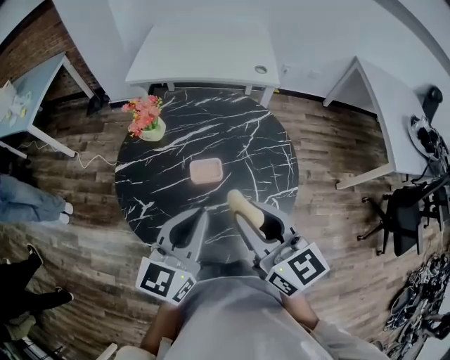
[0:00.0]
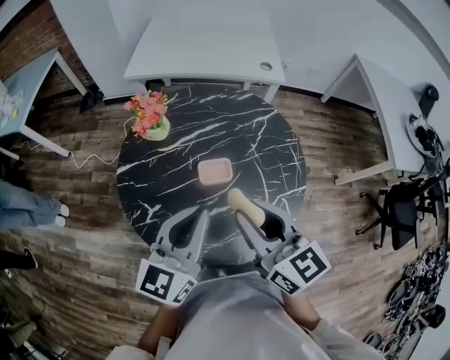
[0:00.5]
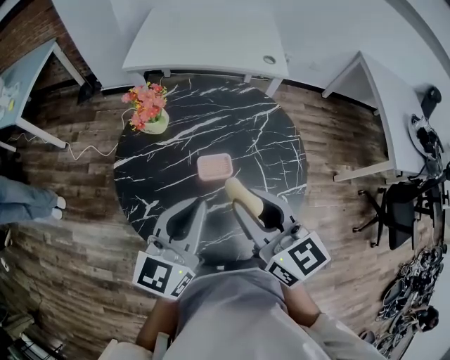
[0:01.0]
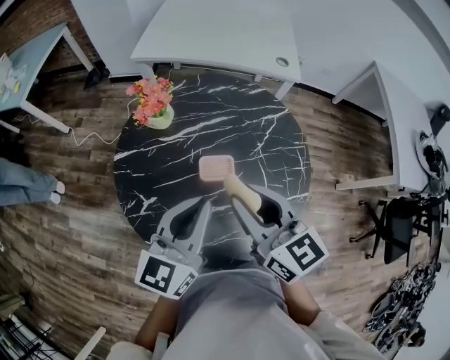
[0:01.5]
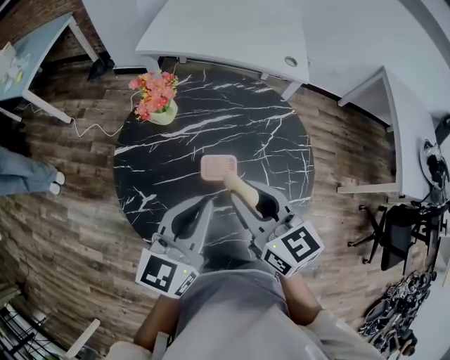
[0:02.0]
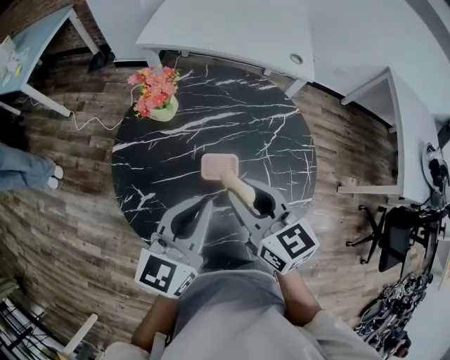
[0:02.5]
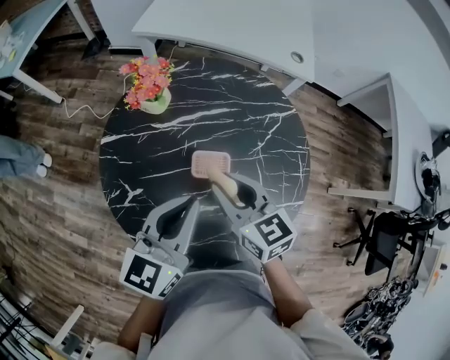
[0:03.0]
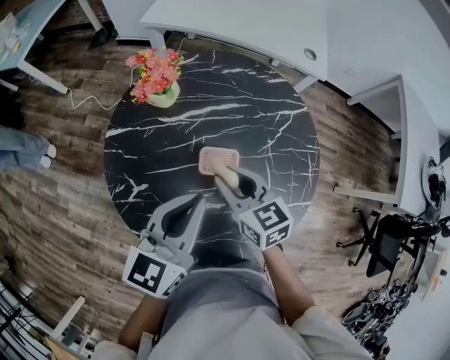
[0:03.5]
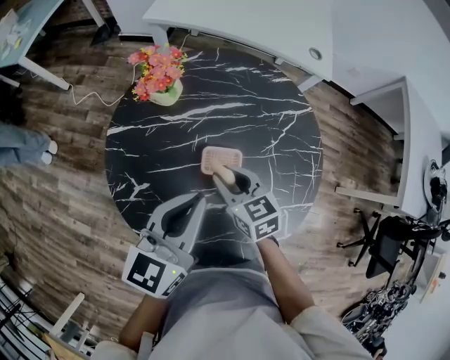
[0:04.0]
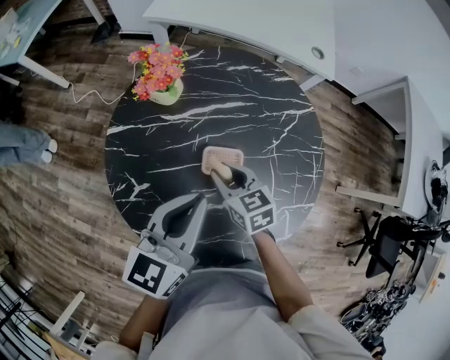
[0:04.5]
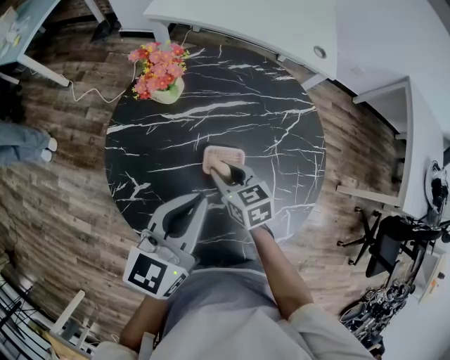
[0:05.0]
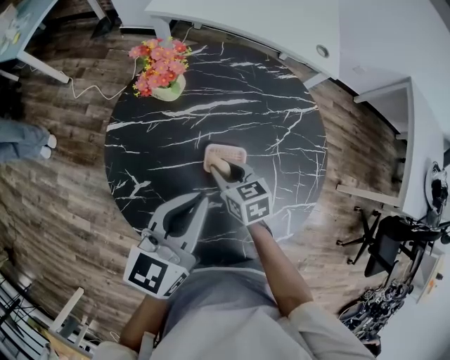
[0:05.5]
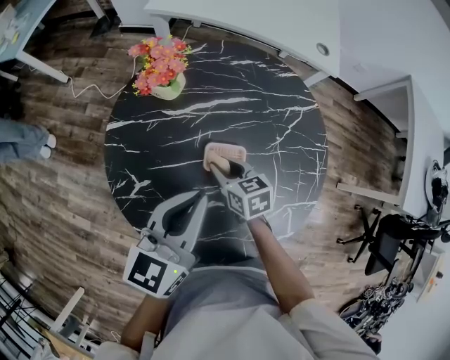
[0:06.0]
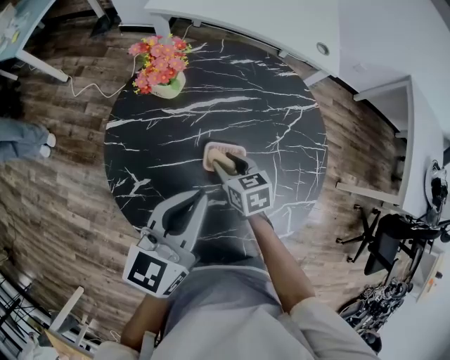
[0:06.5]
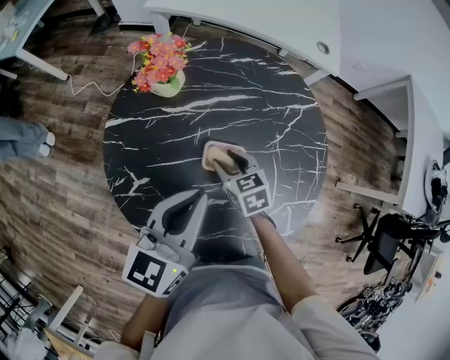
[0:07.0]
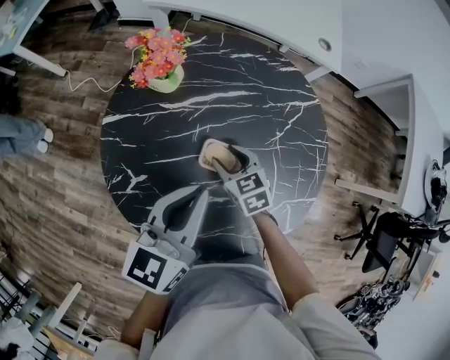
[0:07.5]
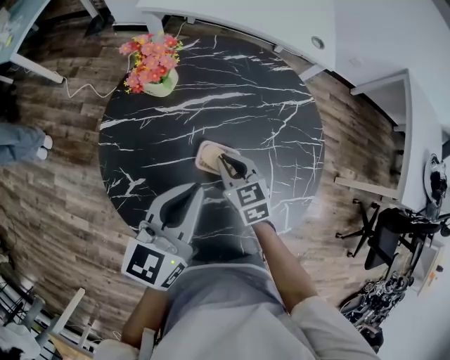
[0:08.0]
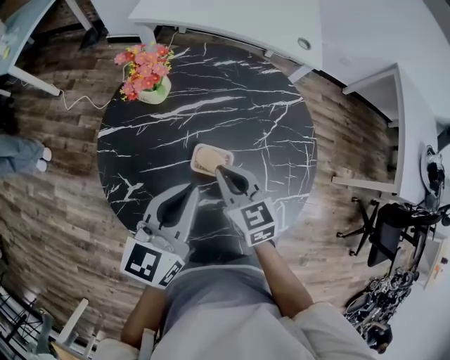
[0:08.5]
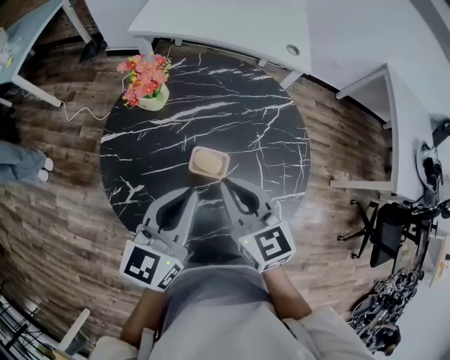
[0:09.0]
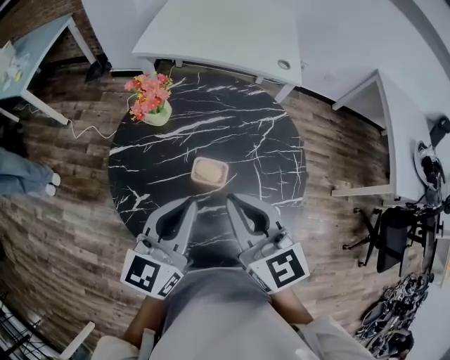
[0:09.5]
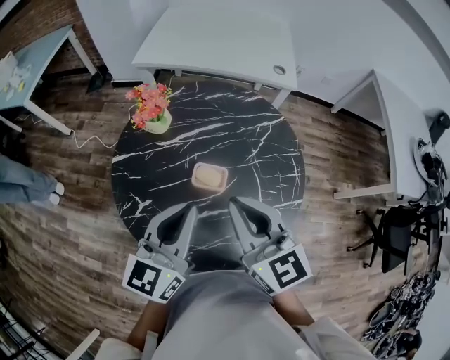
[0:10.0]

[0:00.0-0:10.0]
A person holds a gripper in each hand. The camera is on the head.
0:00.0 to 0:02.0: The left gripper shifts some 5 cm forward, while the right gripper travels forward, downward and to the left by approximately 15 cm.
0:02.0 to 0:04.0: The left gripper shifts by about 5 cm, while the right gripper moves downward, approximately 15 cm.
0:04.0 to 0:06.0: The right gripper moves downward, about 5 cm.
0:06.0 to 0:08.0: The right gripper opens, then closes again.
0:08.0 to 0:10.0: The left gripper shifts some 10 cm upward and backward. The right gripper moves upward and backward, approximately 30 cm, and swivels approximately 30 degrees.

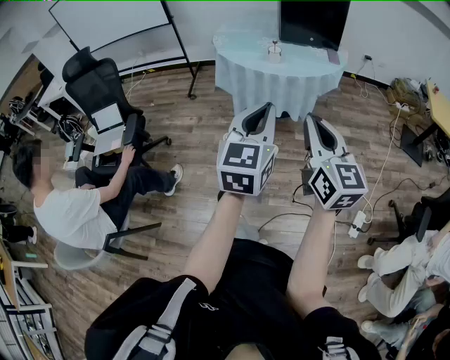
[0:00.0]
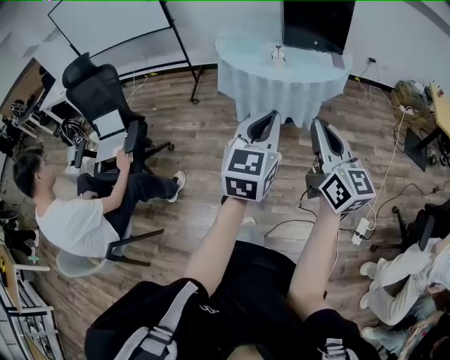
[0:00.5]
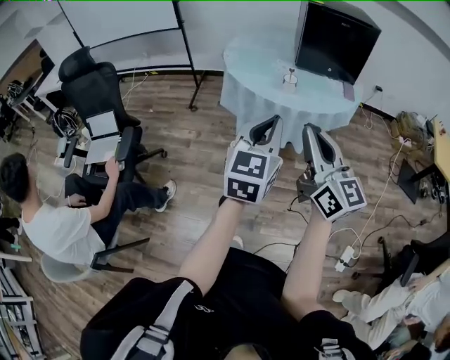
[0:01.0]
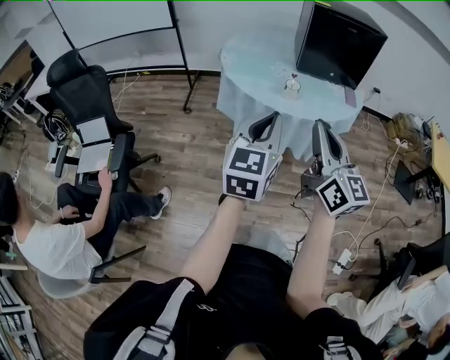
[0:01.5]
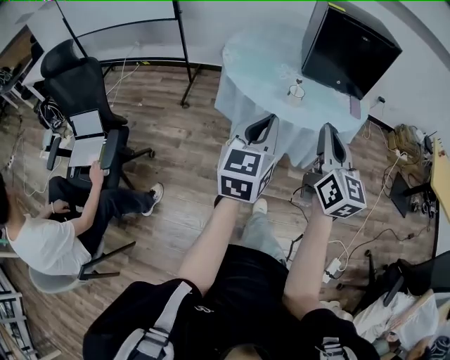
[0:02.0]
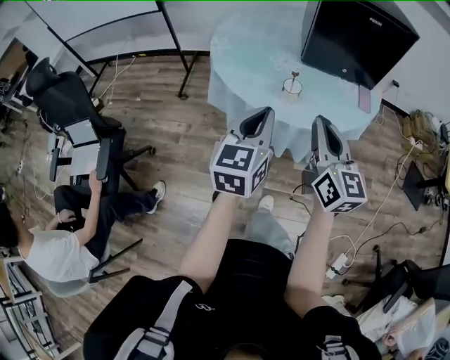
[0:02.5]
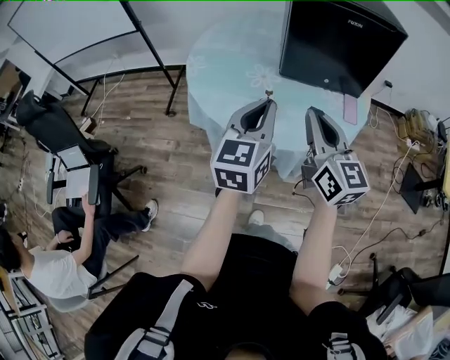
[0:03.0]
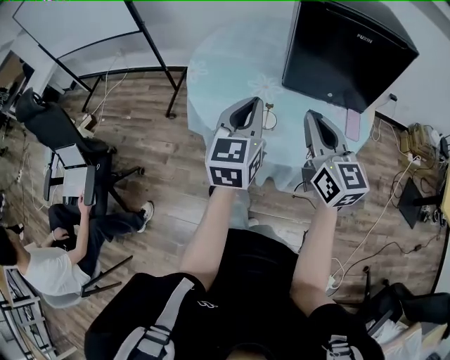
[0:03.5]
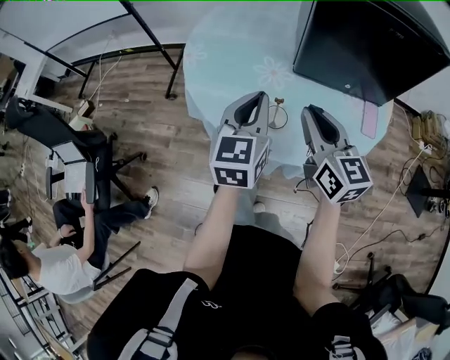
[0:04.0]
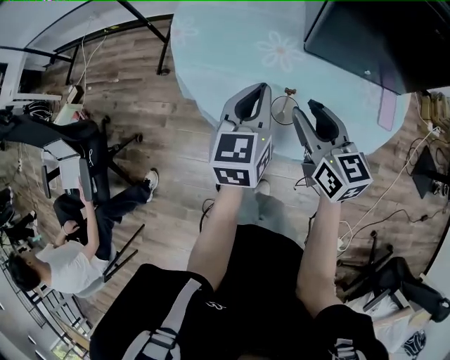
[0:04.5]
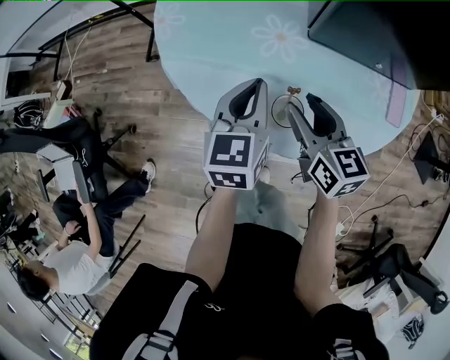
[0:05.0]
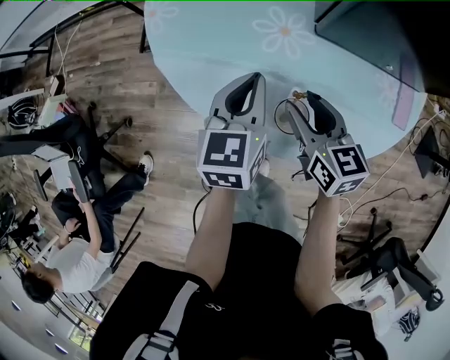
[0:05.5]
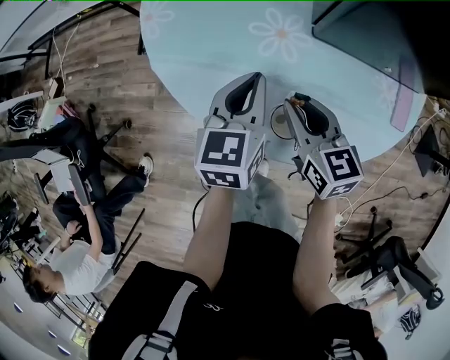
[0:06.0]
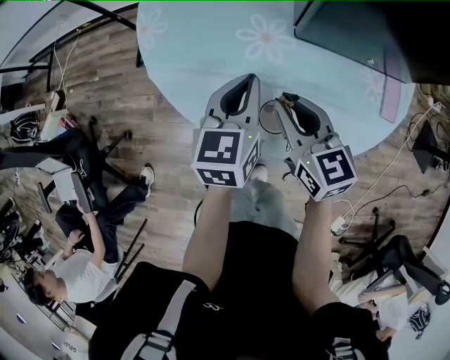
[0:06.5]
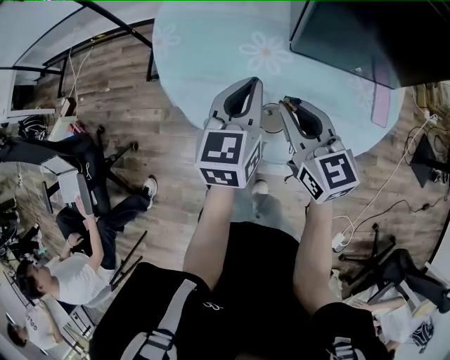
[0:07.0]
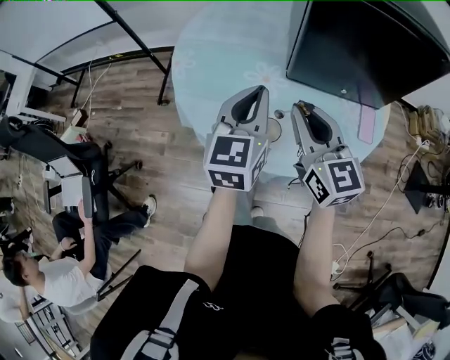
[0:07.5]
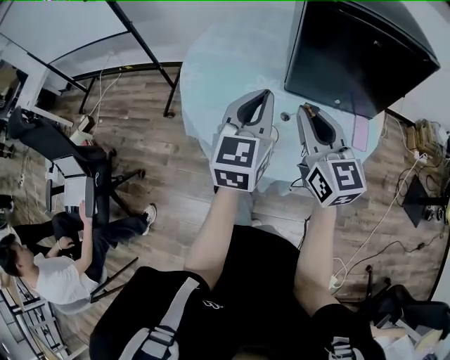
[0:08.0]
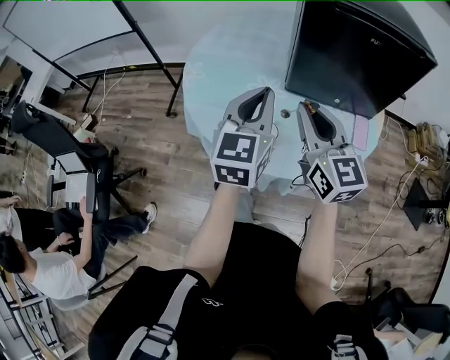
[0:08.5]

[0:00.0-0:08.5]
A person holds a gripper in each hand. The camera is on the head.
0:00.0 to 0:02.0: Both grippers travel together forward, some 30 cm.
0:02.0 to 0:04.0: The grippers both shift forward by about 35 cm. The right gripper changes its angle by approximately 20 degrees.
0:04.0 to 0:06.5: Both grippers travel together downward and forward, roughly 15 cm. The right gripper opens and closes again.
0:06.5 to 0:08.5: The right gripper shifts some 20 cm upward, and rotates some 20 degrees; the left gripper shifts about 20 cm upward and backward, and swivels roughly 20 degrees.

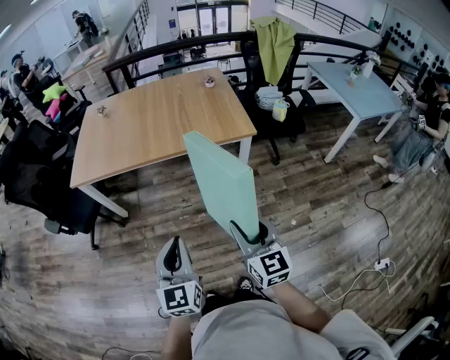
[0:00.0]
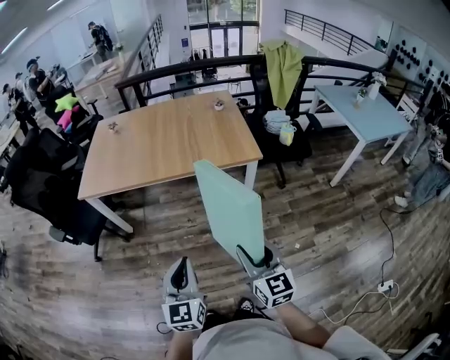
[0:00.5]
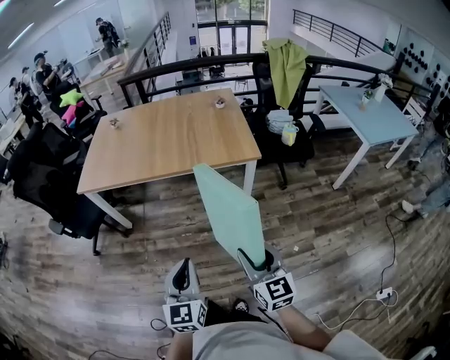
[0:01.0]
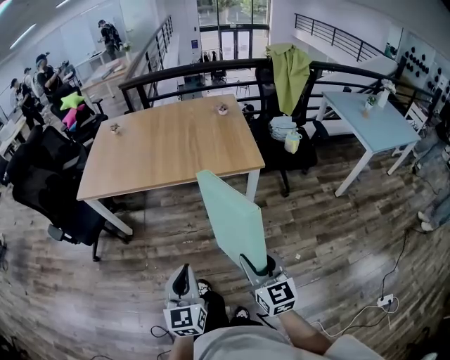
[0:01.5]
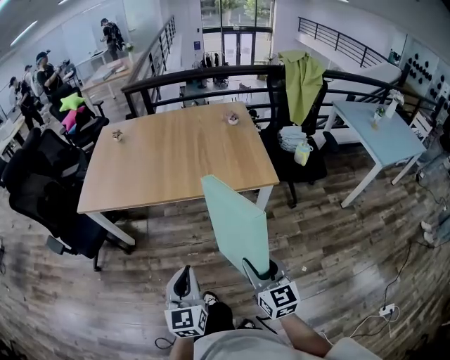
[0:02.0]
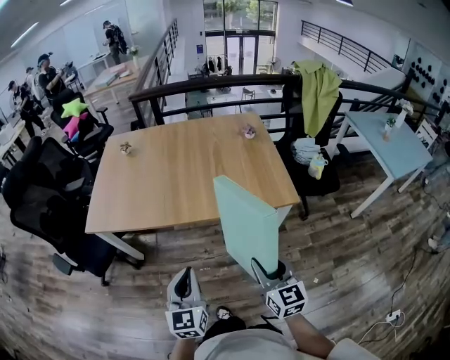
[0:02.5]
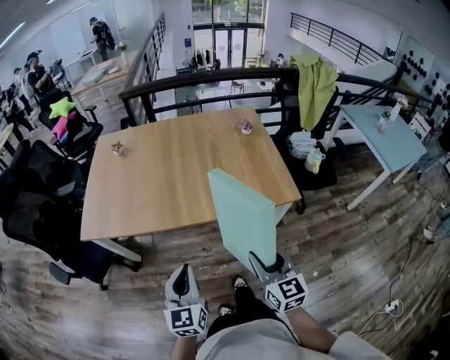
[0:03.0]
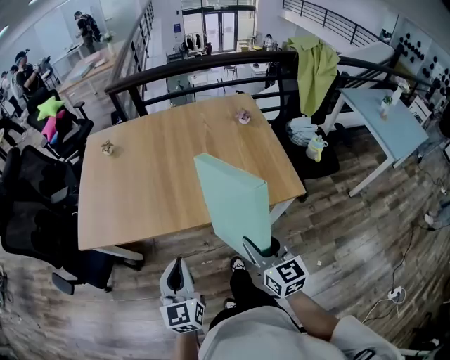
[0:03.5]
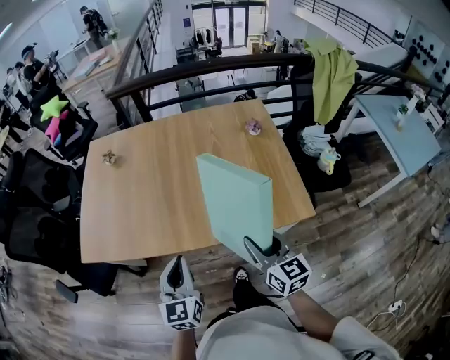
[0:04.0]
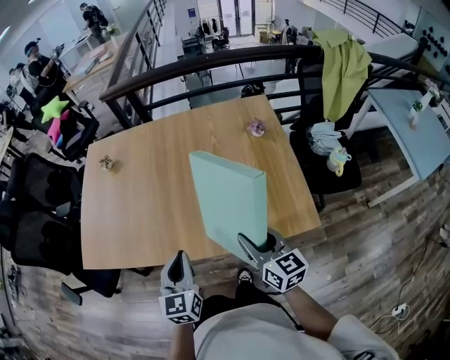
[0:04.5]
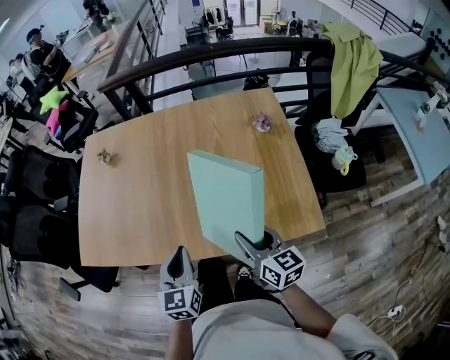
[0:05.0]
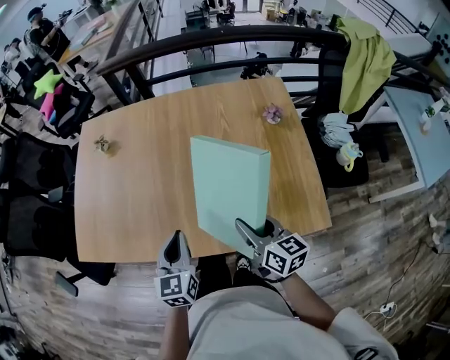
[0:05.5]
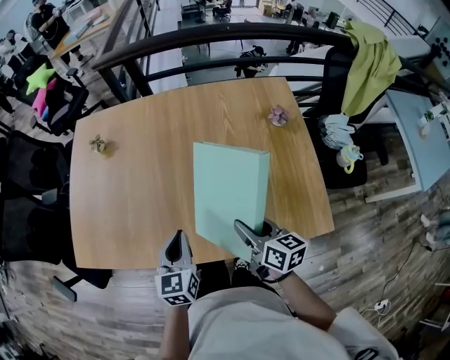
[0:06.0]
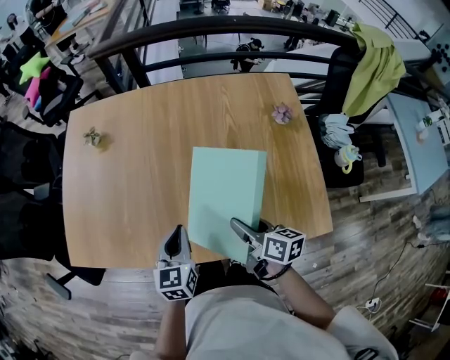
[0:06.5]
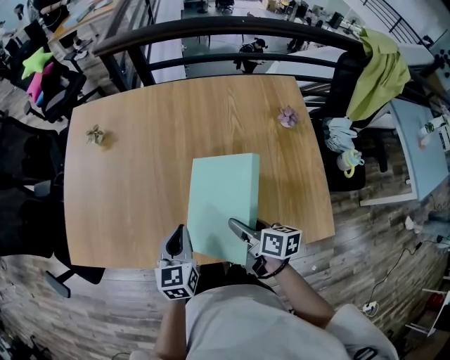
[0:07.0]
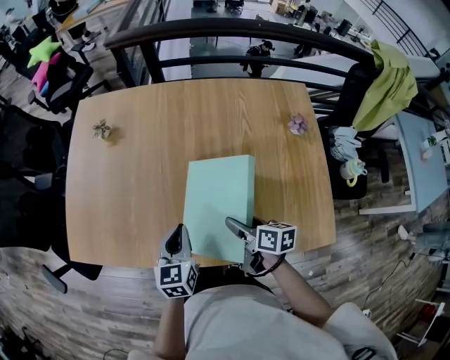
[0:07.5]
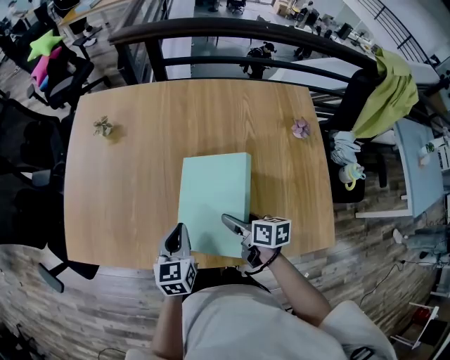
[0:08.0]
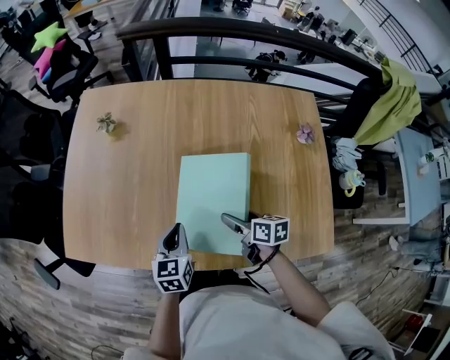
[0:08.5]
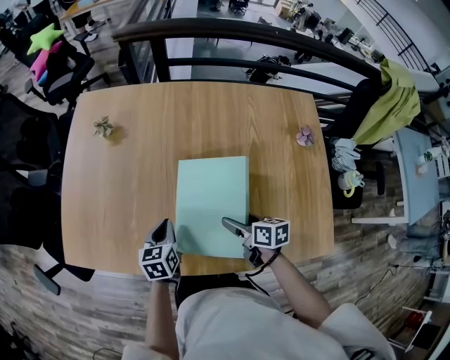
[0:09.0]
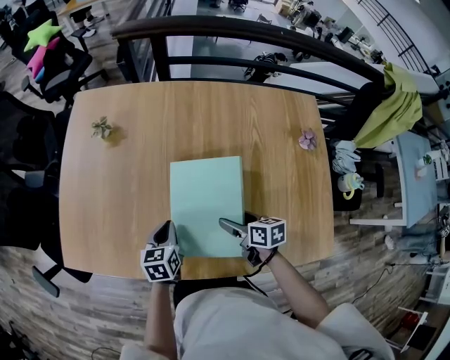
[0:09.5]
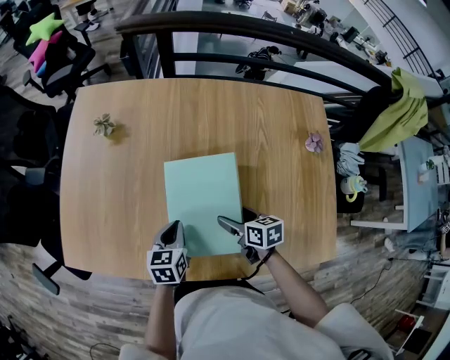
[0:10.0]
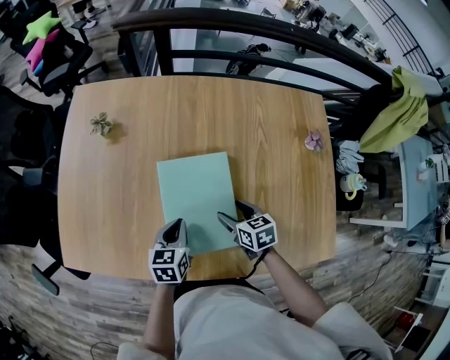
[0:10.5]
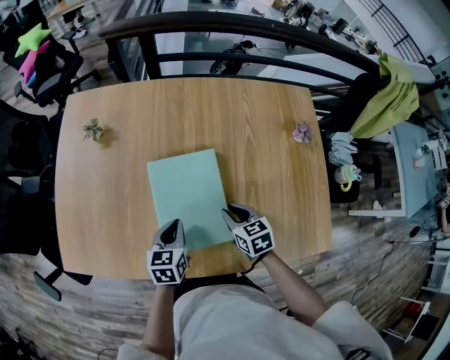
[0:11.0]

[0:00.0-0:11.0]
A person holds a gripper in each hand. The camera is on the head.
0:00.0 to 0:02.0: The right gripper moves forward, about 10 cm. The left gripper is displaced forward and downward by about 10 cm.
0:02.0 to 0:03.5: The right gripper is displaced forward by some 25 cm; the left gripper moves forward and to the left, roughly 25 cm.
0:03.5 to 0:05.5: Both grippers travel together forward, about 25 cm. The right gripper changes its angle by about 30 degrees.
0:05.5 to 0:07.5: The right gripper travels downward, forward and to the left by roughly 15 cm, and turns by approximately 30 degrees. The left gripper moves forward and downward, some 10 cm.
0:07.5 to 0:09.0: The right gripper shifts by some 5 cm, while the left gripper heads downward, forward and to the left, covering about 10 cm.
0:09.0 to 0:11.0: The right gripper rotates about 30 degrees, and closes its fingers; the left gripper shifts about 5 cm to the right.
